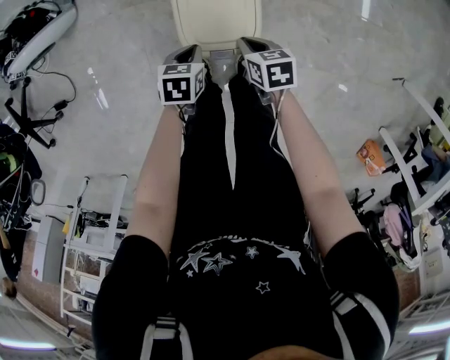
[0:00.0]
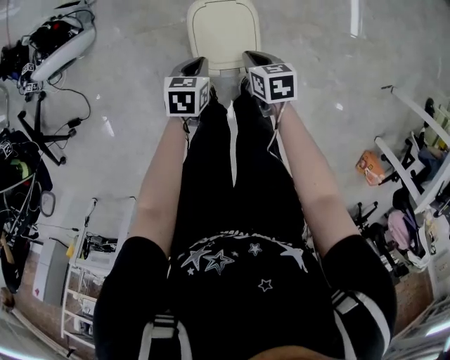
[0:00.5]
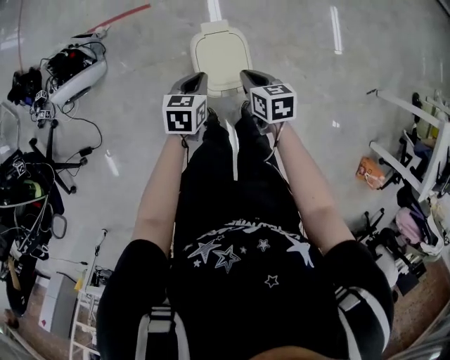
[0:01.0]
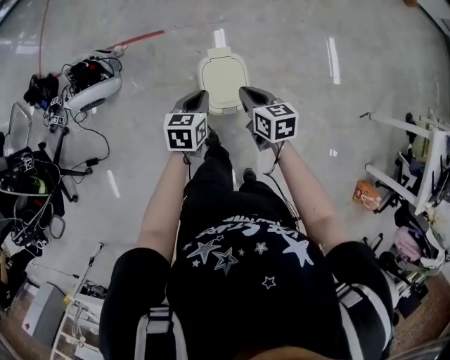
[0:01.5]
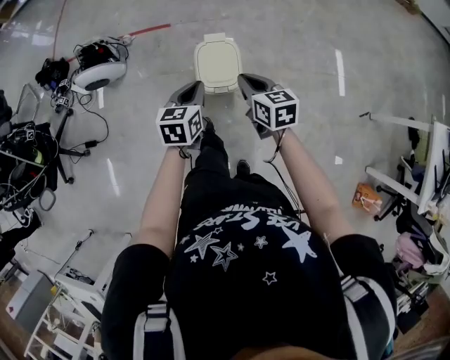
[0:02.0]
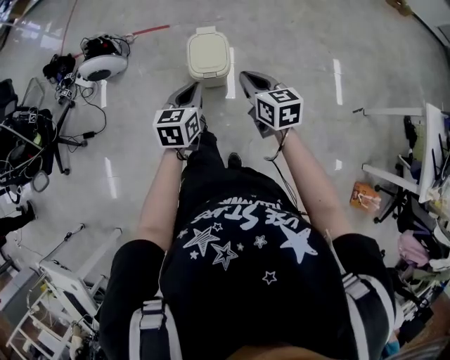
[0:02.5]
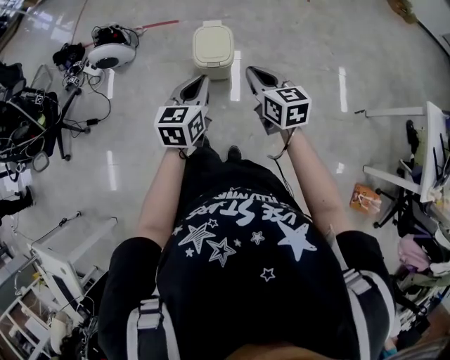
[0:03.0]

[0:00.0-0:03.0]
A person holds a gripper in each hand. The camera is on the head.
0:00.0 to 0:01.5: The two grippers go about 30 cm upward. The right gripper changes its angle by some 20 degrees. Meanwhile the left gripper turns by roughly 30 degrees.
0:01.5 to 0:03.0: The two grippers go about 35 cm backward and upward. The left gripper changes its angle by roughly 20 degrees; the right gripper changes its angle by some 20 degrees.

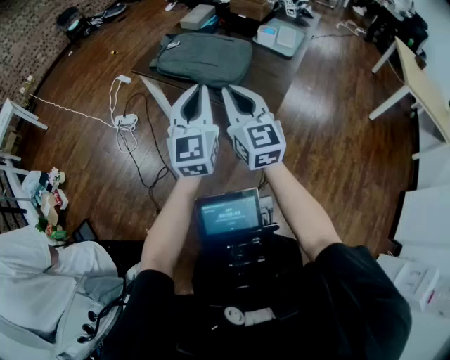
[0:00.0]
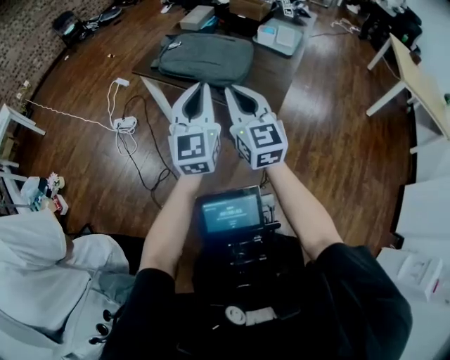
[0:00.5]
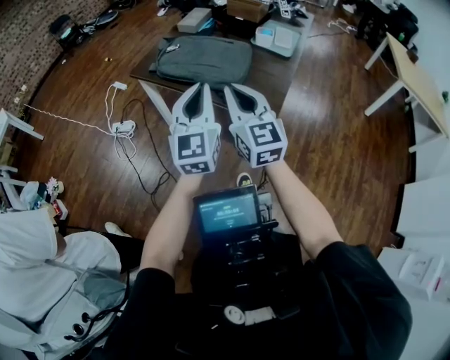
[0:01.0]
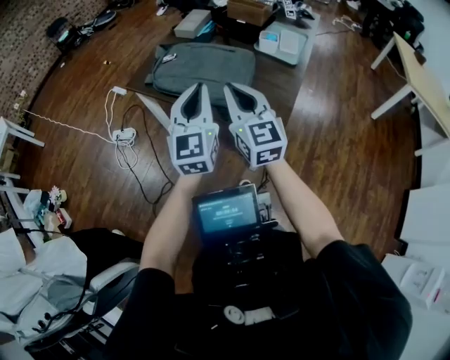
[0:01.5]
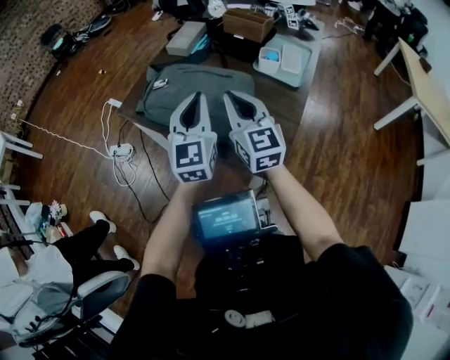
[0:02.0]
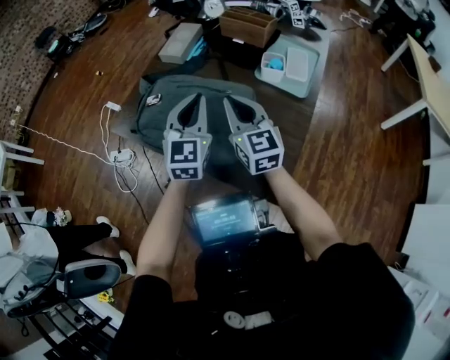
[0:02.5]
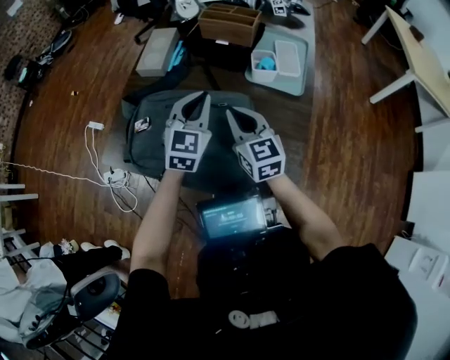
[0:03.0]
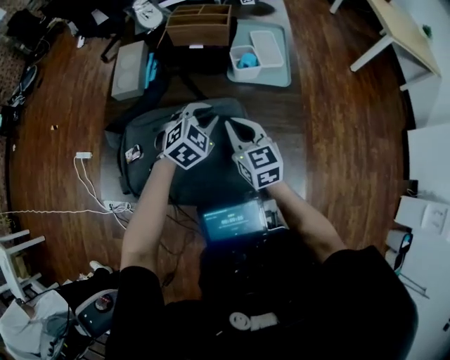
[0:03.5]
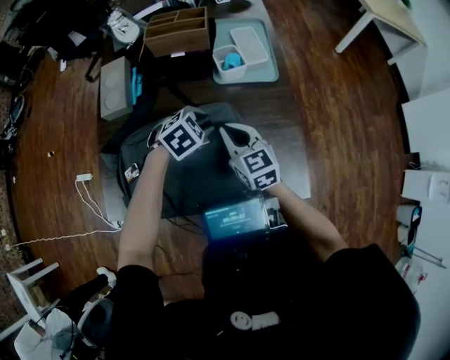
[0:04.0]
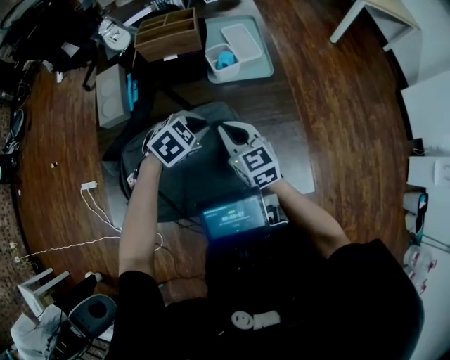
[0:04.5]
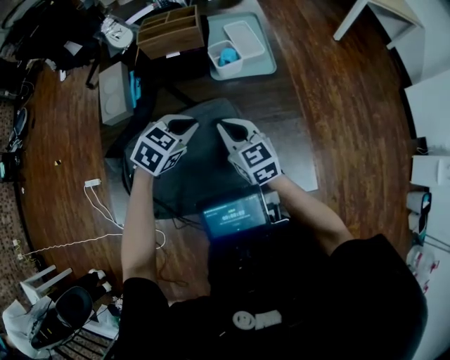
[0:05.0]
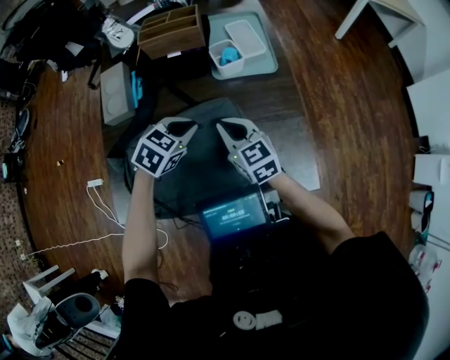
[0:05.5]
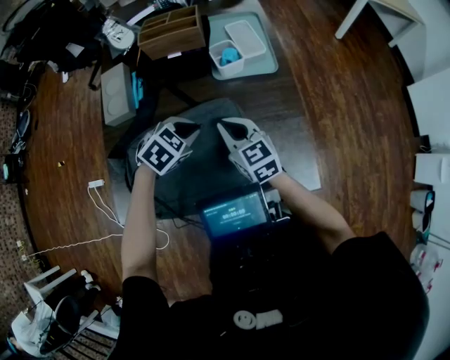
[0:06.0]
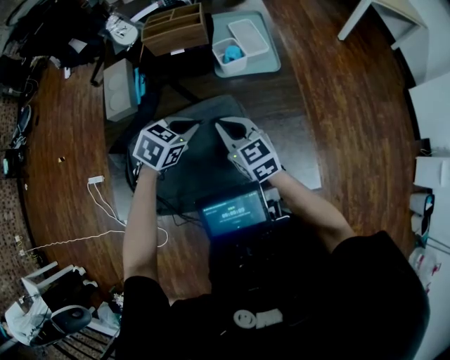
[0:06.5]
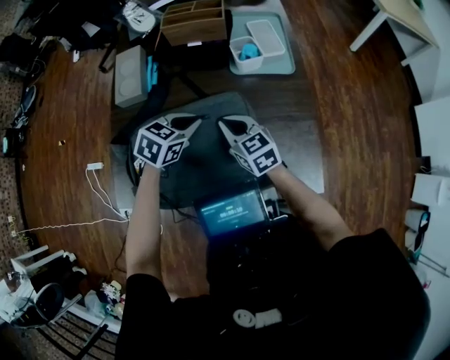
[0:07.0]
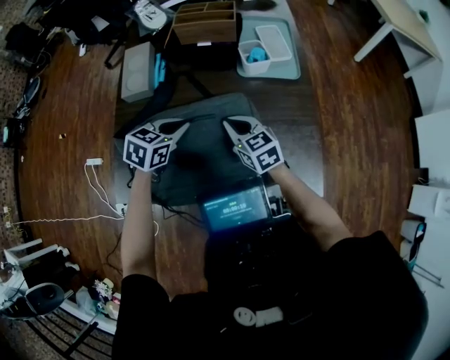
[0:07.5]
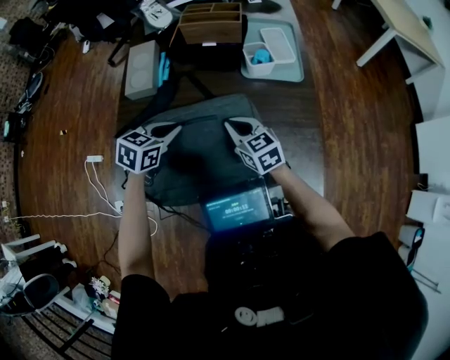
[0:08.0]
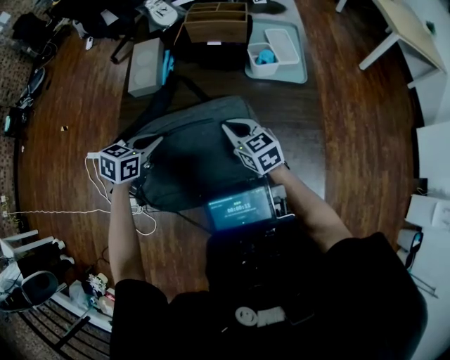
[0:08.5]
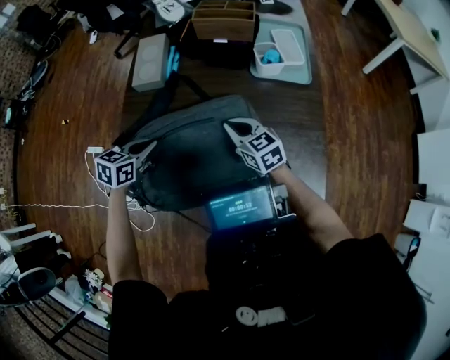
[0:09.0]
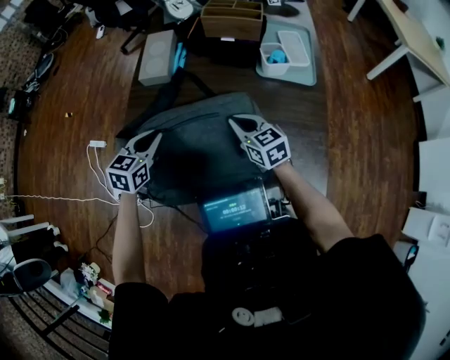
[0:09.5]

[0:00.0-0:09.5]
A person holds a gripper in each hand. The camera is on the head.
0:00.0 to 0:02.0: Both grippers travel together forward, about 25 cm.
0:02.0 to 0:04.0: The two grippers go roughly 20 cm downward. The right gripper turns by approximately 30 degrees; the left gripper points its fingers approximately 60 degrees further downward, and opens its fingers.
0:04.0 to 0:05.5: The left gripper moves about 5 cm, and closes up.
0:05.5 to 0:07.5: The left gripper goes roughly 10 cm to the left, and swivels roughly 20 degrees; the right gripper ends up some 5 cm from where it was.
0:07.5 to 0:09.5: The left gripper goes about 15 cm to the left and backward, and swivels roughly 20 degrees.

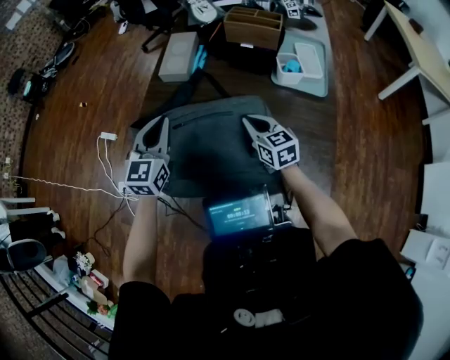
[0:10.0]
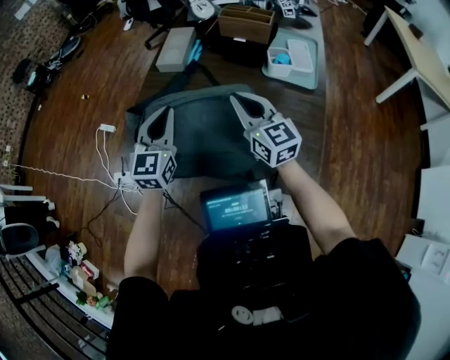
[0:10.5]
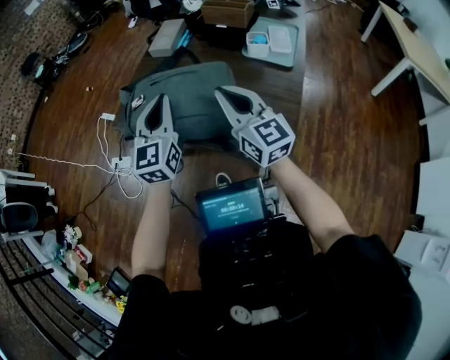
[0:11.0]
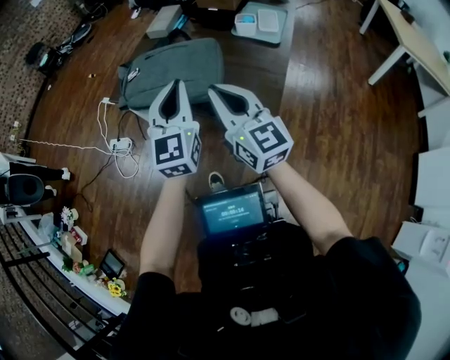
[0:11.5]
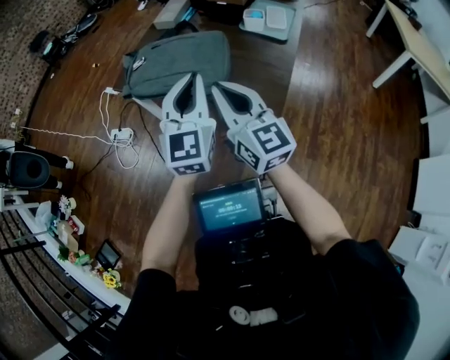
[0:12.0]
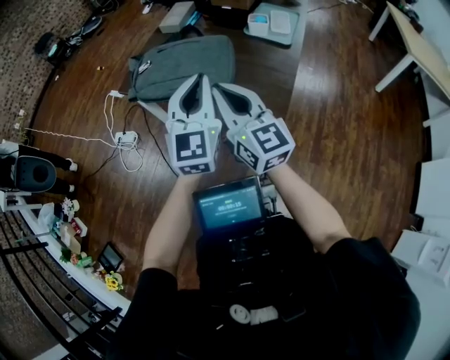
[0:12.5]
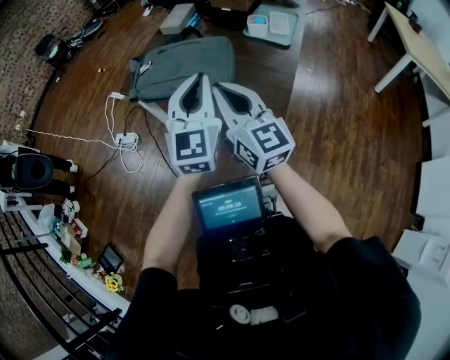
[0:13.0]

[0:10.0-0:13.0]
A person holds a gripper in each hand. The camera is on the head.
0:10.0 to 0:11.5: The left gripper moves backward and to the right, about 35 cm, and changes its angle by approximately 20 degrees. The right gripper heads backward and upward, covering roughly 40 cm, and swivels roughly 30 degrees.
0:11.5 to 0:13.0: The grippers make only small movements.

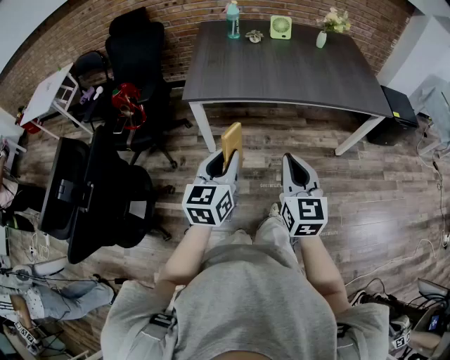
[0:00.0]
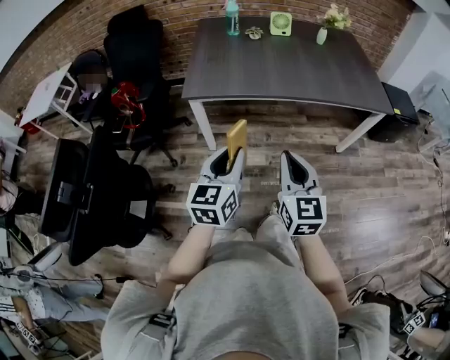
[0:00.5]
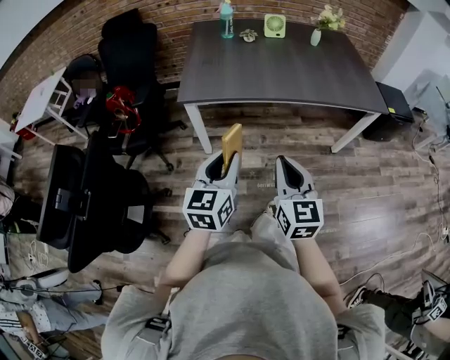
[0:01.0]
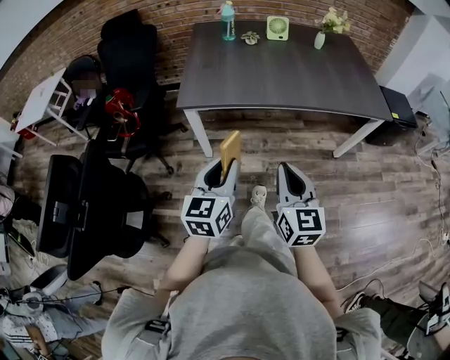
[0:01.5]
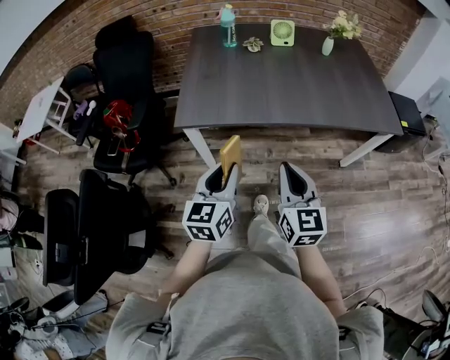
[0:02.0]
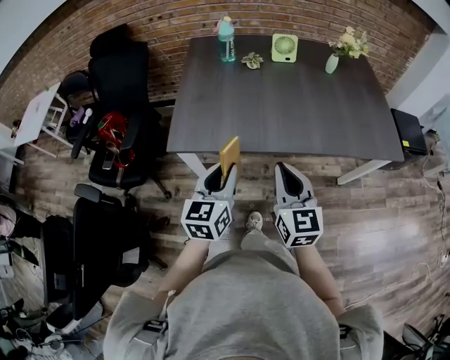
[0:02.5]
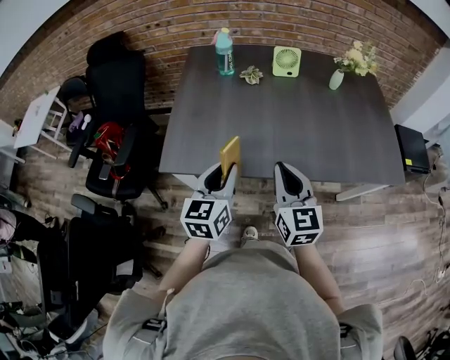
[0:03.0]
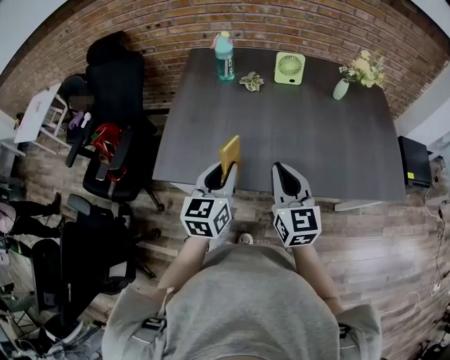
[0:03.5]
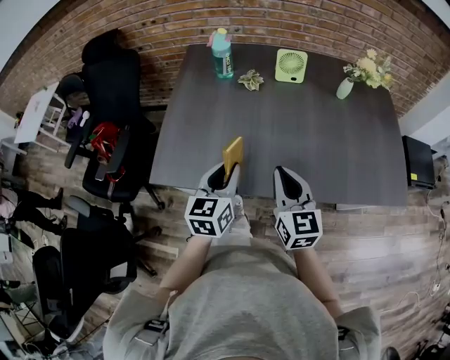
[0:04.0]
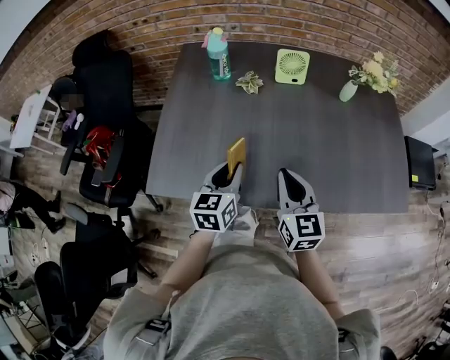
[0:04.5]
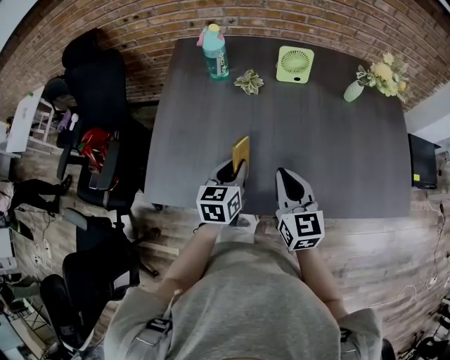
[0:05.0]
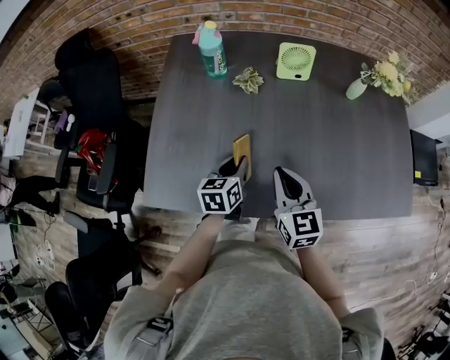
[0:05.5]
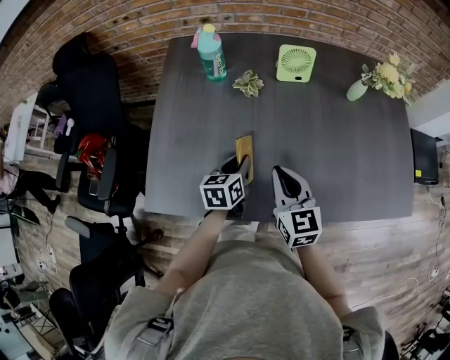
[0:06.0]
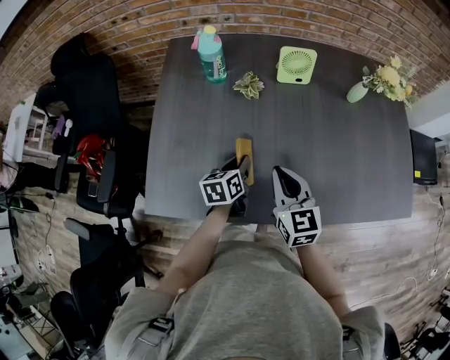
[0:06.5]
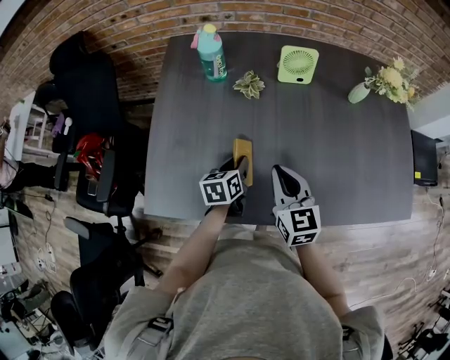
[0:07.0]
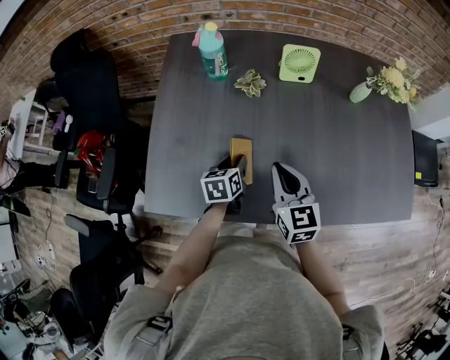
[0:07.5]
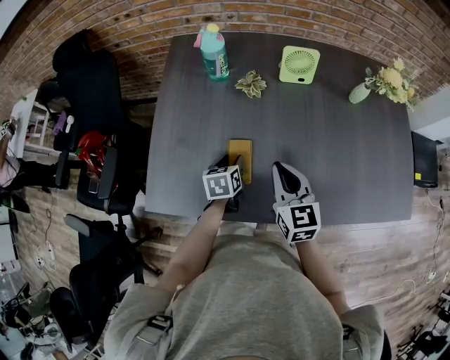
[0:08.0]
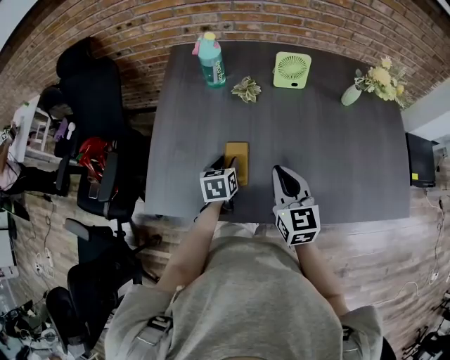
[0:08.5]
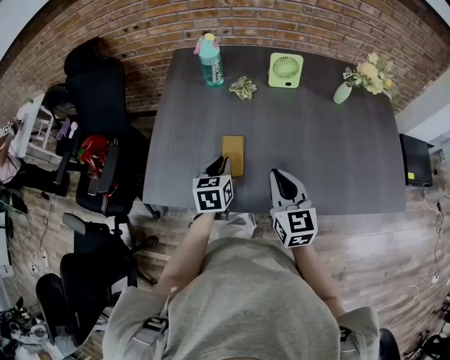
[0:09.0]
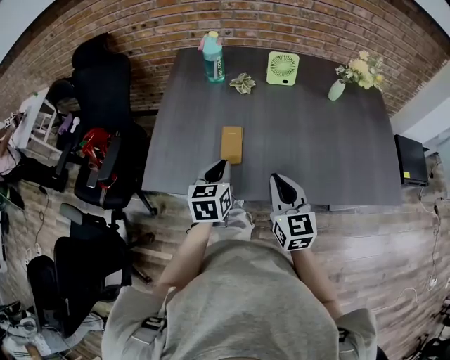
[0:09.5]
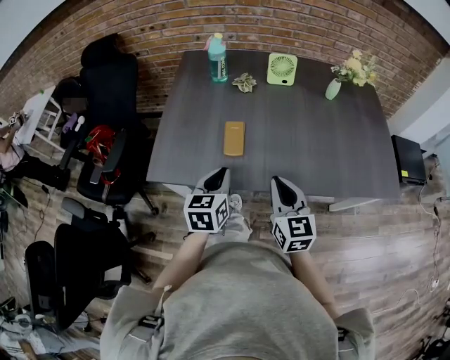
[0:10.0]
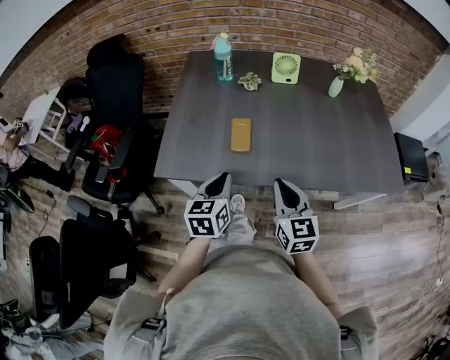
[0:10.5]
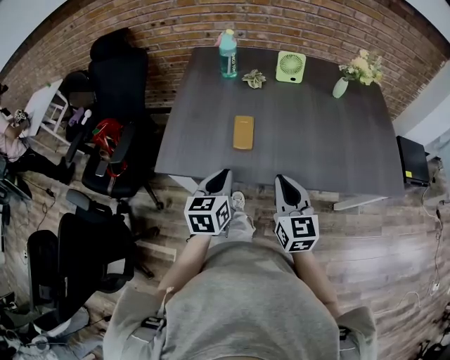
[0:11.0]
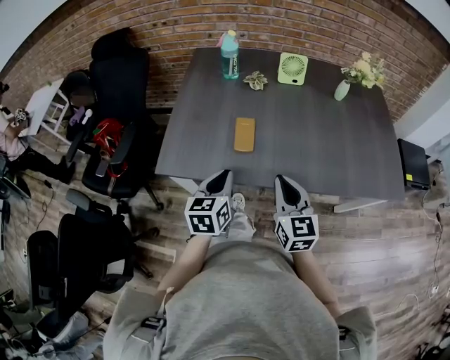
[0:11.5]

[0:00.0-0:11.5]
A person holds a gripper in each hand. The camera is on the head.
0:00.0 to 0:02.0: Both grippers travel together forward, approximately 15 cm.
0:02.0 to 0:04.0: Both grippers travel together forward, approximately 30 cm.
0:04.0 to 0:06.0: The left gripper travels forward and downward by about 20 cm, and changes its angle by some 20 degrees; the right gripper is displaced forward and downward by roughly 15 cm.
0:06.0 to 0:07.5: The left gripper changes place by roughly 5 cm.
0:07.5 to 0:09.5: The right gripper travels backward by roughly 15 cm. Meanwhile the left gripper heads backward and upward, covering some 20 cm, changes its angle by about 20 degrees, and closes.
0:09.5 to 0:11.5: The two grippers go about 10 cm backward.
